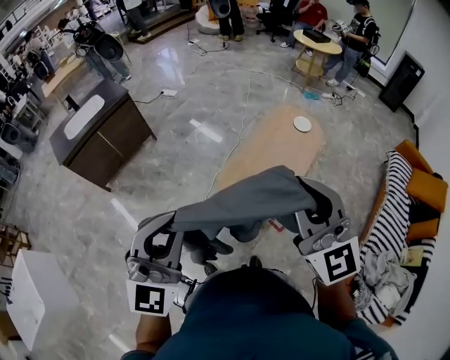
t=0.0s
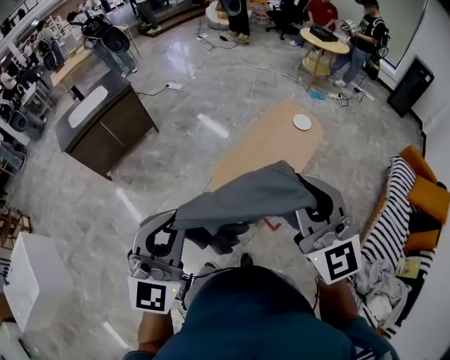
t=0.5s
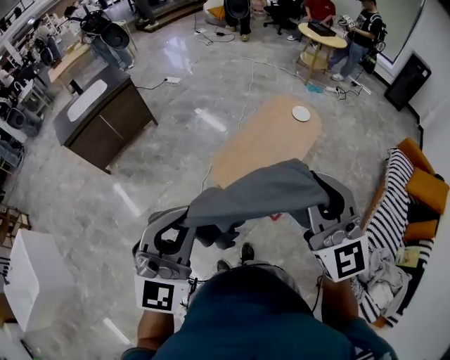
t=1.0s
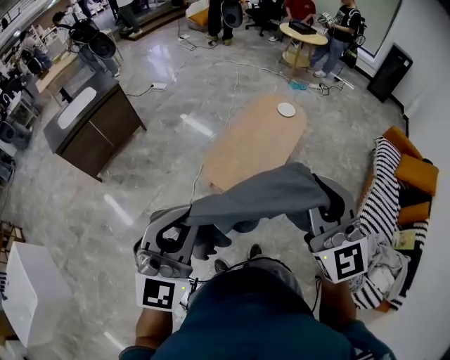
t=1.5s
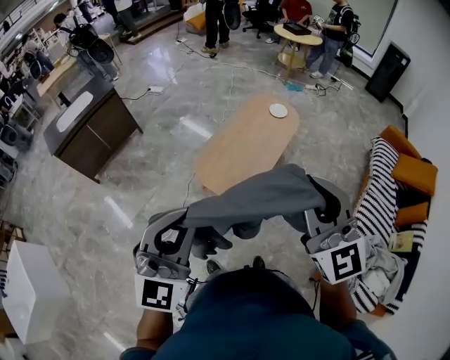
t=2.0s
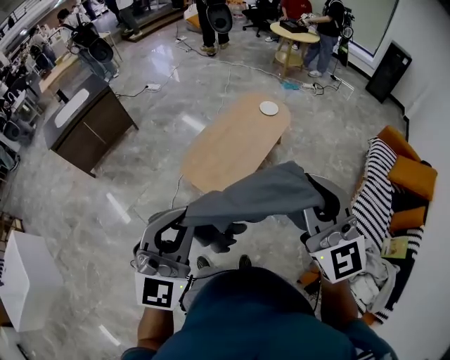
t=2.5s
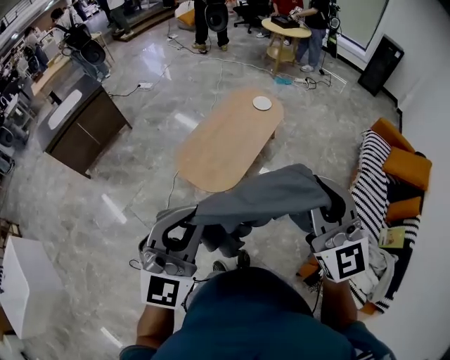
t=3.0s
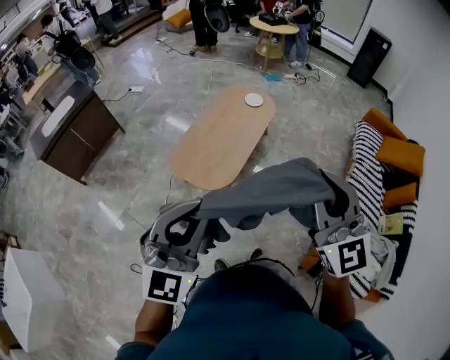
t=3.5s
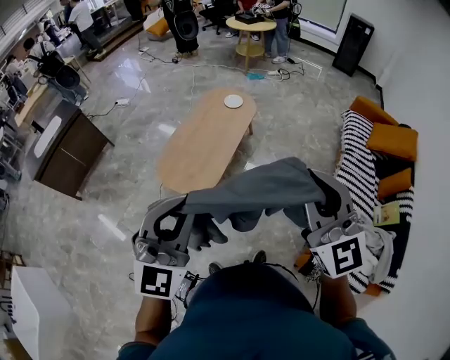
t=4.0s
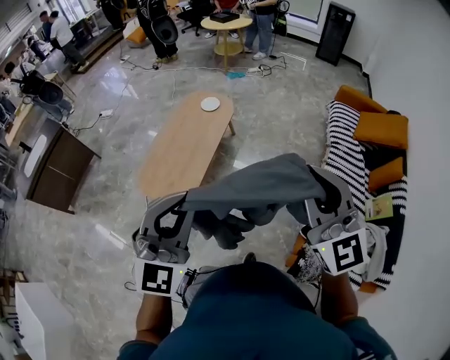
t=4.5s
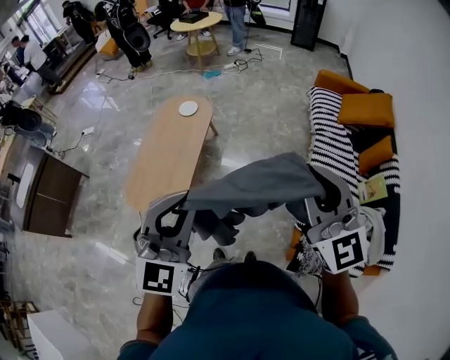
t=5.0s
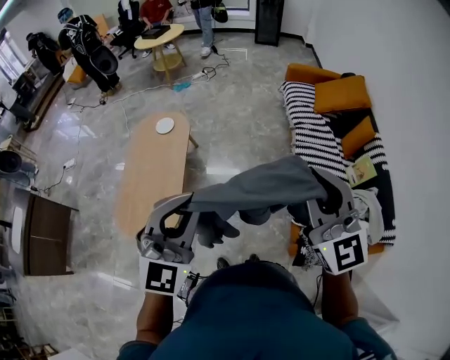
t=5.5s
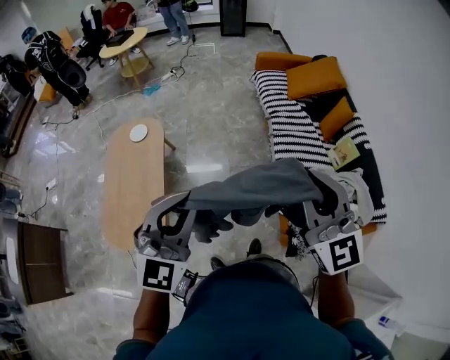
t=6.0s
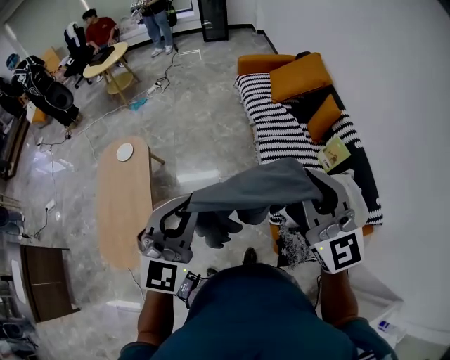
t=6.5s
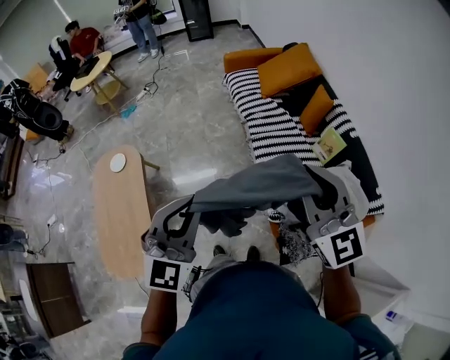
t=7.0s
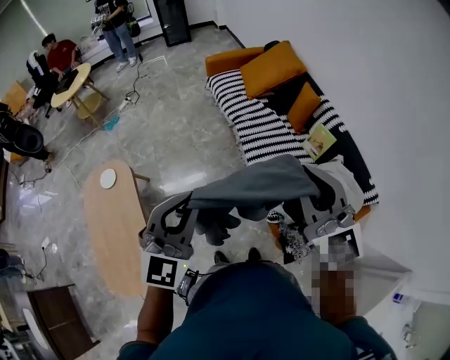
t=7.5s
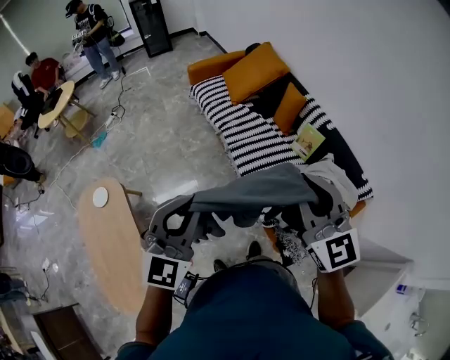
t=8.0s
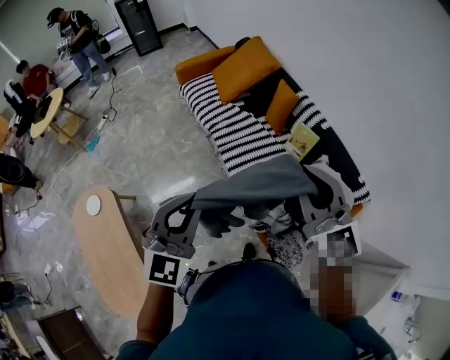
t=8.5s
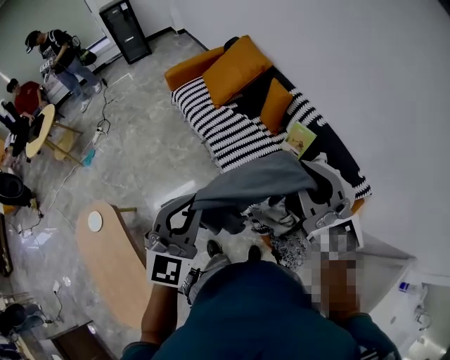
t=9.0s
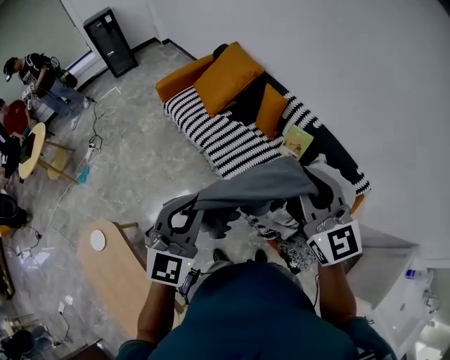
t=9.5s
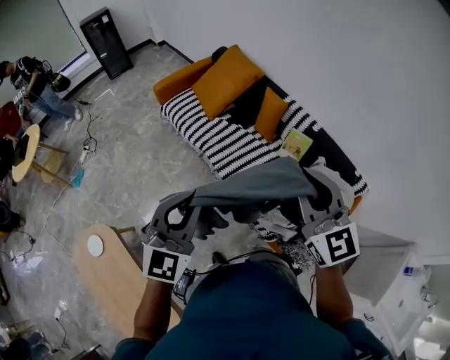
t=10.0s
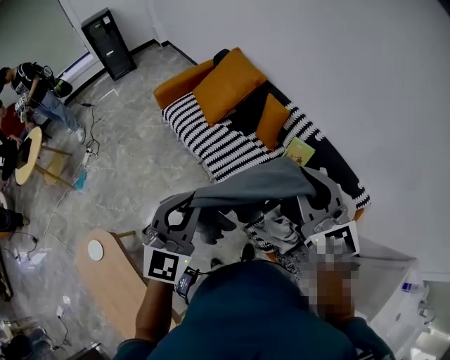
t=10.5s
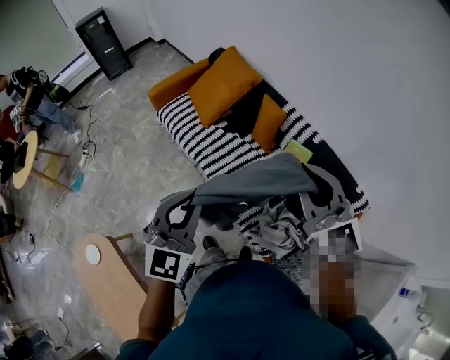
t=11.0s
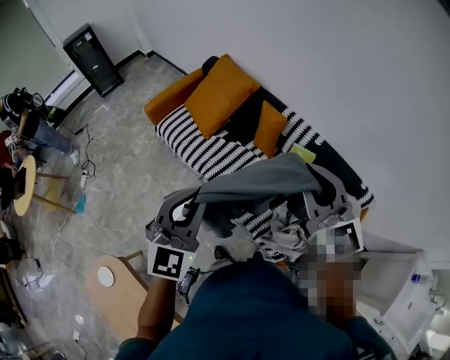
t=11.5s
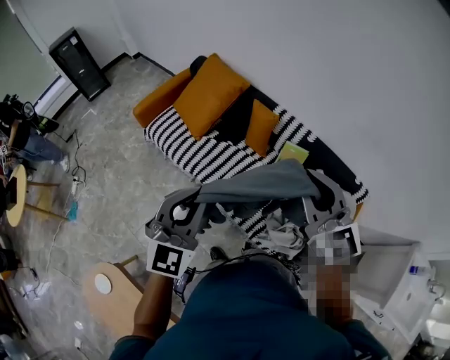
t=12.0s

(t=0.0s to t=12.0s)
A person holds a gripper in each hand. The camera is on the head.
t=0.0s - t=2.0s: Both grippers travel together to the right and backward, some 20 cm.
t=2.0s - t=4.0s: The grippers both shift to the right by about 20 cm.
t=4.0s - t=6.0s: The left gripper moves approximately 30 cm, and swivels roughly 30 degrees, while the right gripper changes place by approximately 25 cm, and rotates approximately 30 degrees.
t=6.0s - t=8.0s: The two grippers go some 20 cm forward and to the right. The right gripper changes its angle by about 20 degrees, while the left gripper rotates some 20 degrees.
t=8.0s - t=10.0s: Both grippers move forward, roughly 15 cm.
t=10.0s - t=12.0s: The two grippers go some 15 cm forward.

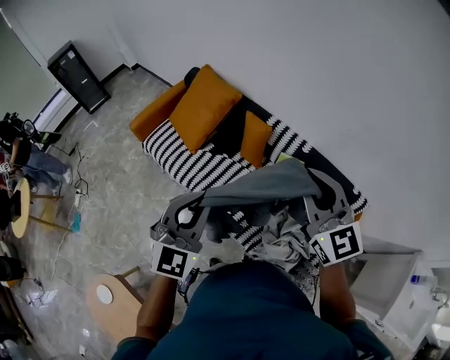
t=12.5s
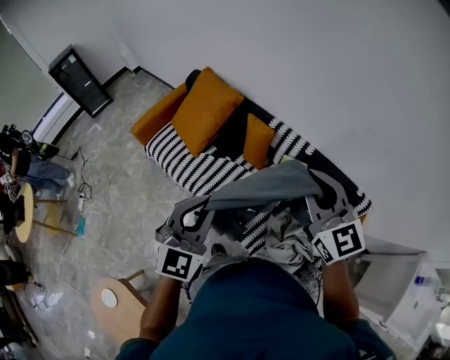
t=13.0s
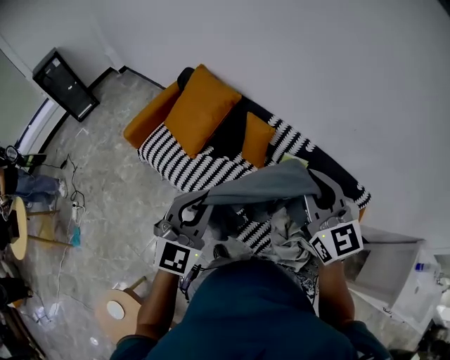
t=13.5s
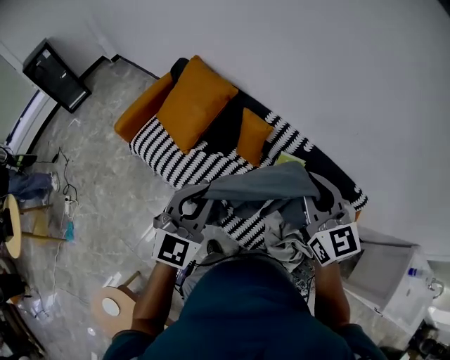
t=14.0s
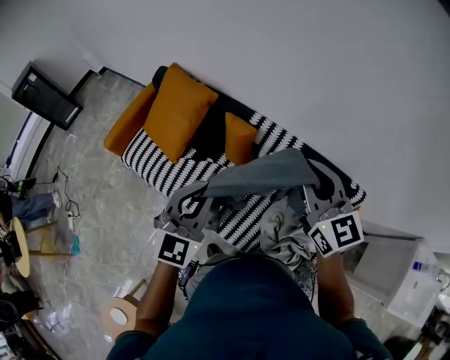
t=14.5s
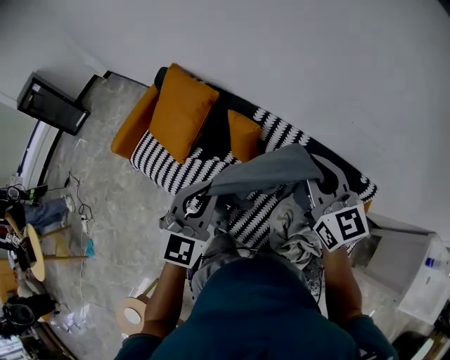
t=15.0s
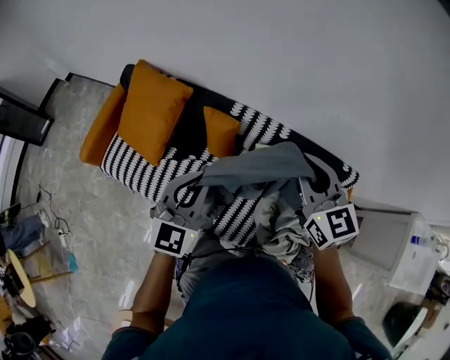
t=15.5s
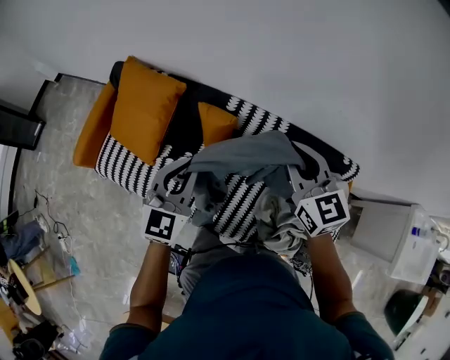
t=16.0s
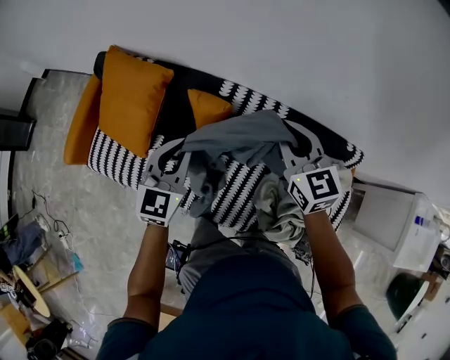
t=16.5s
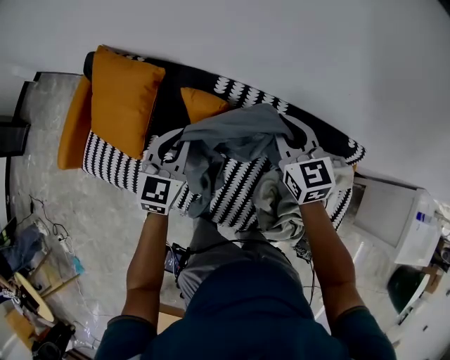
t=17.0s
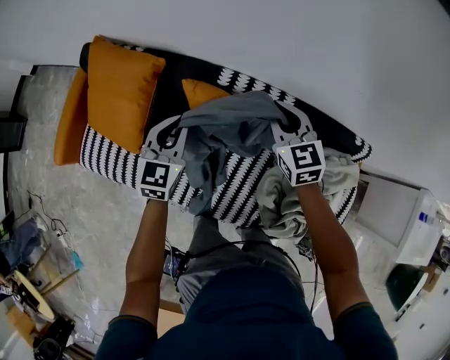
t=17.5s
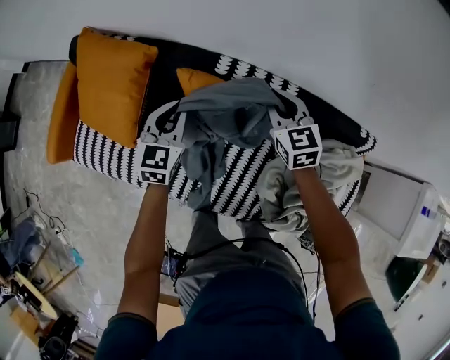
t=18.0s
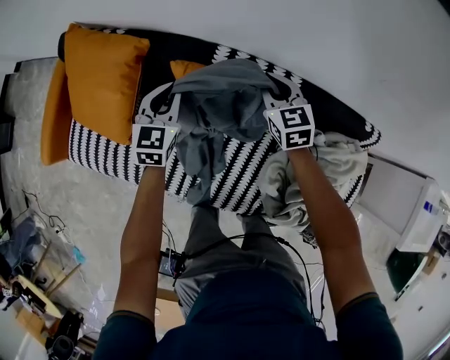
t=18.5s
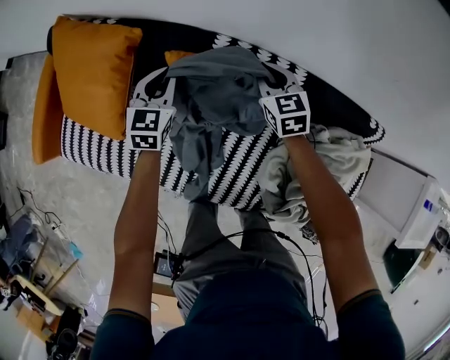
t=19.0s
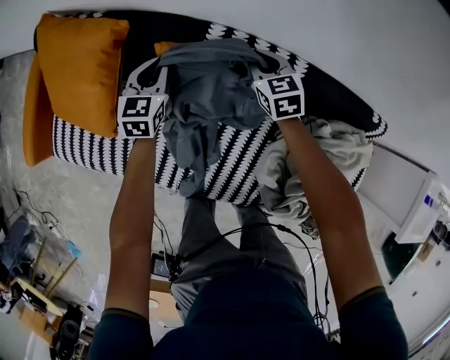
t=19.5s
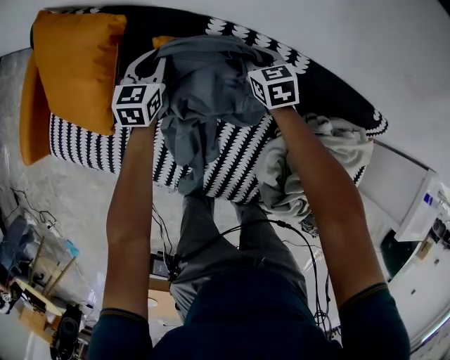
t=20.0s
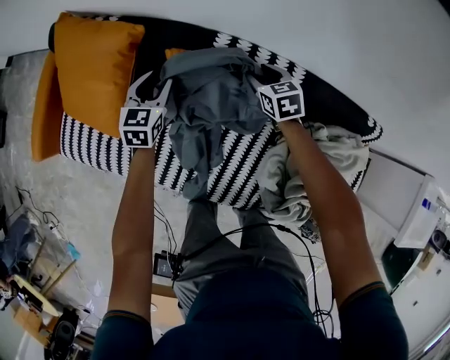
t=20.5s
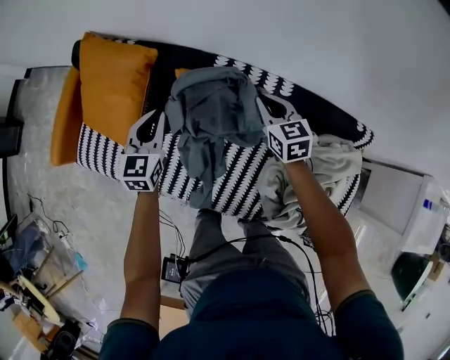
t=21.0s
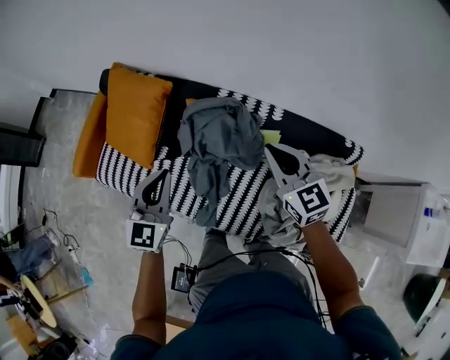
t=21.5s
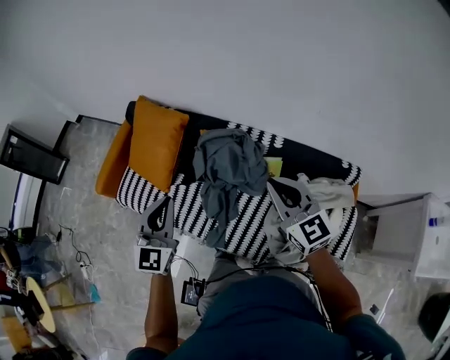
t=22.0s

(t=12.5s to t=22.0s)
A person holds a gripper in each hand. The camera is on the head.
t=12.5s - t=14.5s: Both grippers travel together forward, about 15 cm.
t=14.5s - t=16.5s: The left gripper travels forward and downward by roughly 25 cm, while the right gripper goes approximately 20 cm downward and forward.
t=16.5s - t=18.0s: The two grippers go about 20 cm downward and forward.
t=18.0s - t=20.0s: The left gripper goes some 20 cm downward and forward. Meanwhile the right gripper moves downward, roughly 20 cm.
t=20.0s - t=22.0s: Both grippers move upward and backward, about 60 cm. The right gripper points its fingers approximately 40 degrees further upward, and opens and closes again. The left gripper rotates roughly 30 degrees, and opens, then closes again.

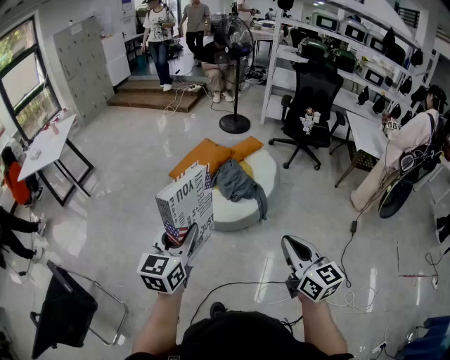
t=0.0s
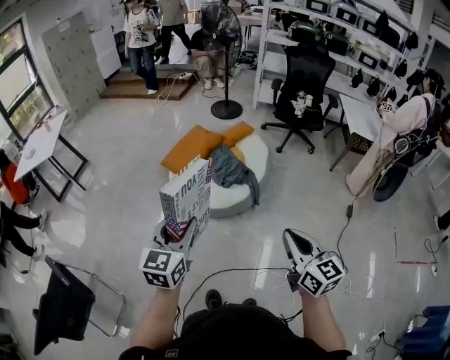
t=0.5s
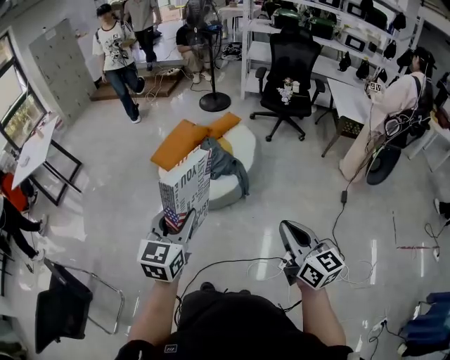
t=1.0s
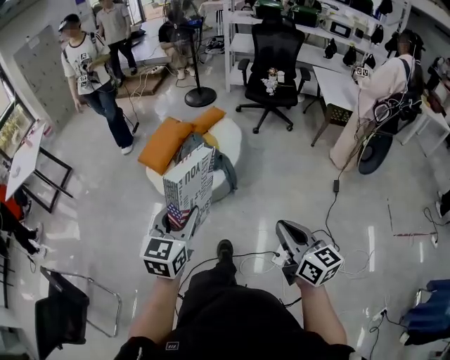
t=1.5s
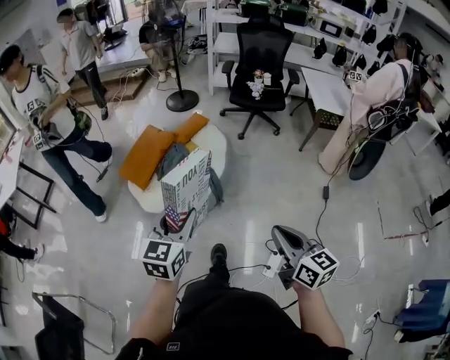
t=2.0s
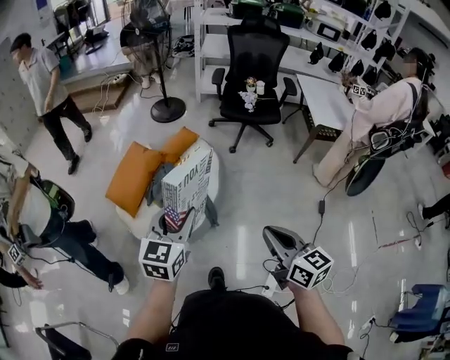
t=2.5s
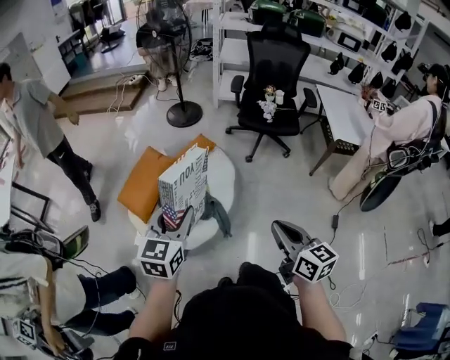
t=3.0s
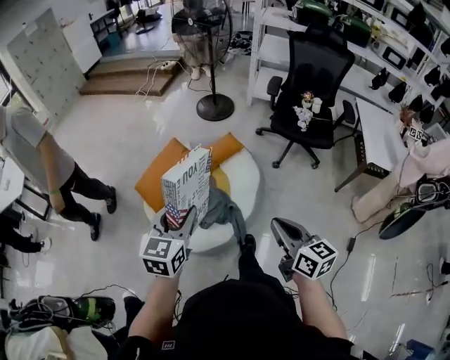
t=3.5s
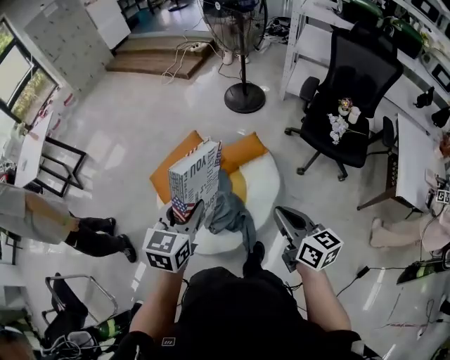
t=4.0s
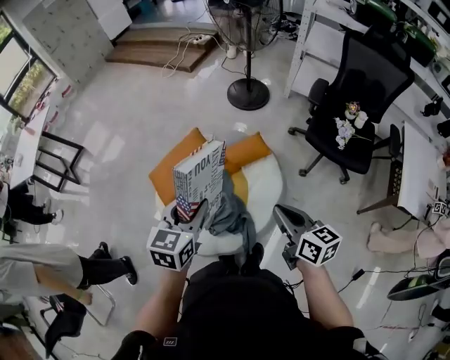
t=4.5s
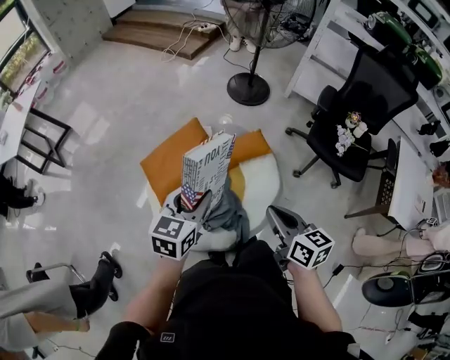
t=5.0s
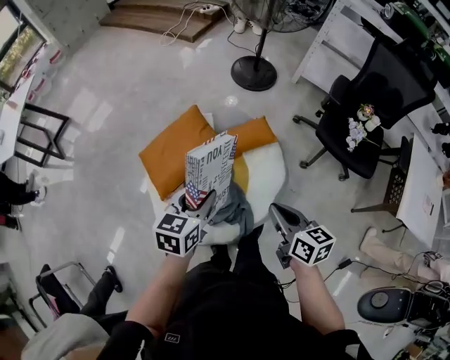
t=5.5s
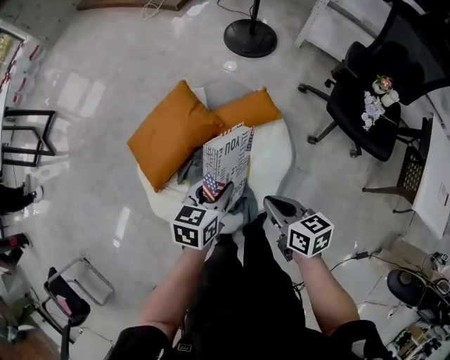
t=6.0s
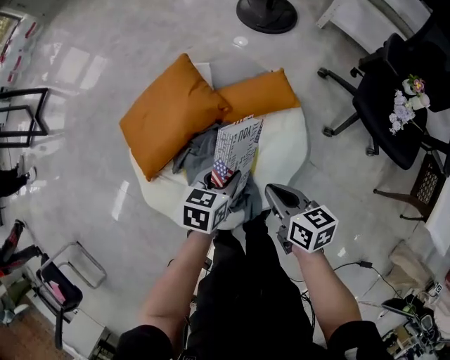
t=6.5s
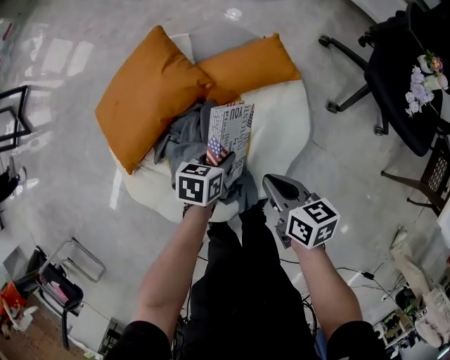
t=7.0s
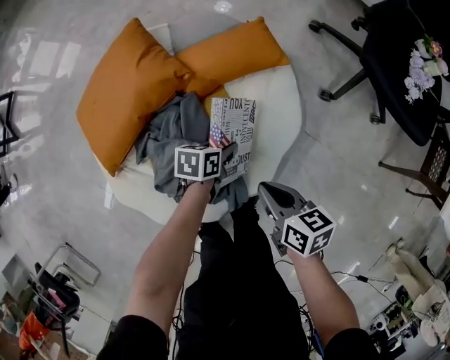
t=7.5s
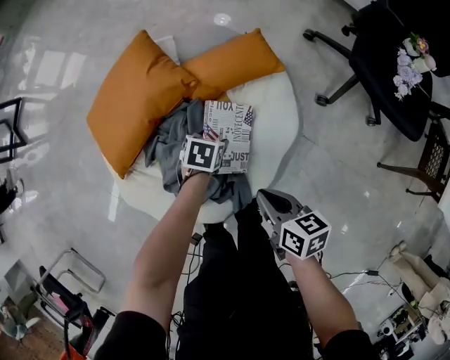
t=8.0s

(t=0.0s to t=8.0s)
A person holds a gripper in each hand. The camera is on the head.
t=0.0s - t=2.0s: The right gripper shifts some 25 cm to the right; the left gripper heads to the right and forward, covering roughly 30 cm.
t=2.0s - t=4.0s: Both grippers are carried forward, about 60 cm. The right gripper rotates about 20 degrees, while the left gripper turns by about 20 degrees.
t=4.0s - t=6.0s: The right gripper moves downward, forward and to the left, some 30 cm, and rotates roughly 30 degrees, while the left gripper goes roughly 30 cm downward and forward, and turns by approximately 30 degrees.
t=6.0s - t=8.0s: The left gripper moves downward, roughly 40 cm, angles its fingers downward, by about 30 degrees, and opens its fingers, while the right gripper is displaced downward by approximately 25 cm.
